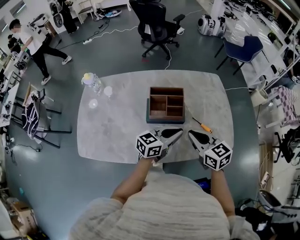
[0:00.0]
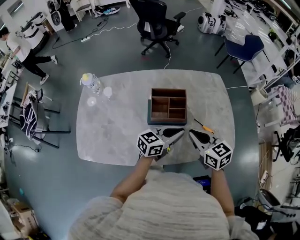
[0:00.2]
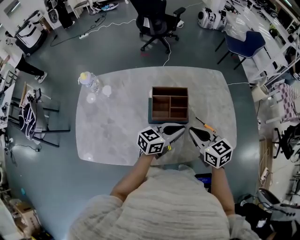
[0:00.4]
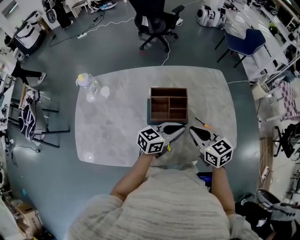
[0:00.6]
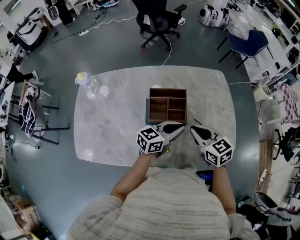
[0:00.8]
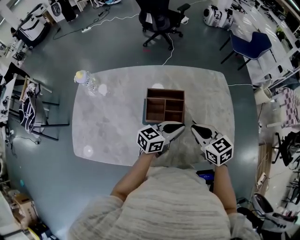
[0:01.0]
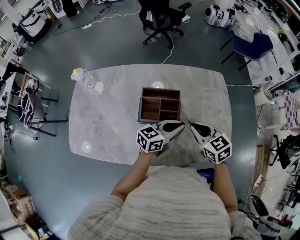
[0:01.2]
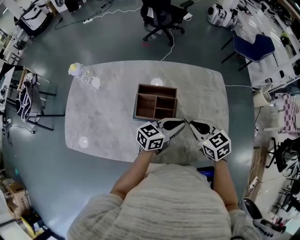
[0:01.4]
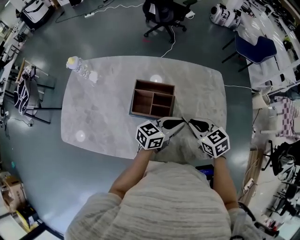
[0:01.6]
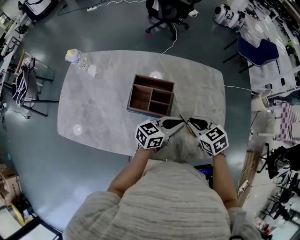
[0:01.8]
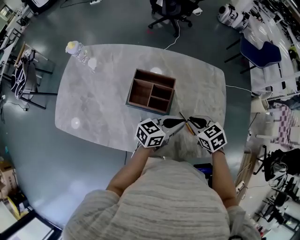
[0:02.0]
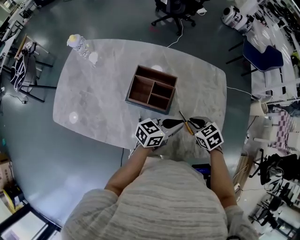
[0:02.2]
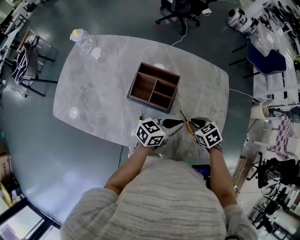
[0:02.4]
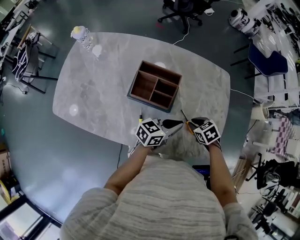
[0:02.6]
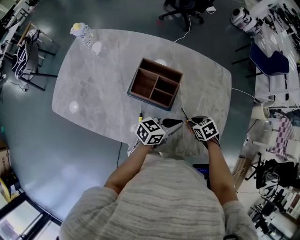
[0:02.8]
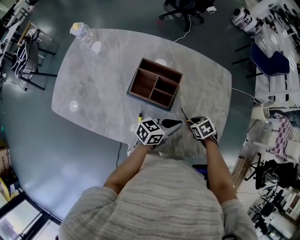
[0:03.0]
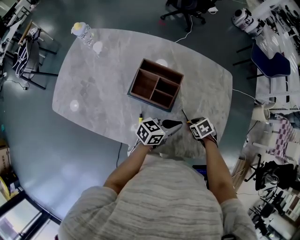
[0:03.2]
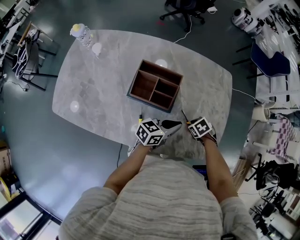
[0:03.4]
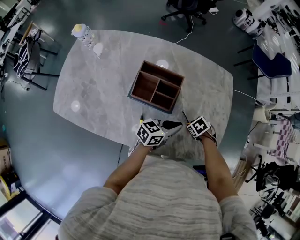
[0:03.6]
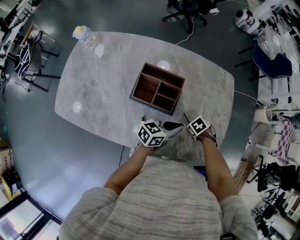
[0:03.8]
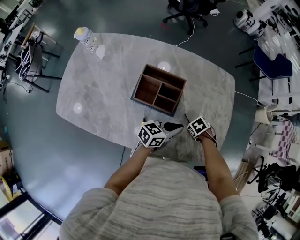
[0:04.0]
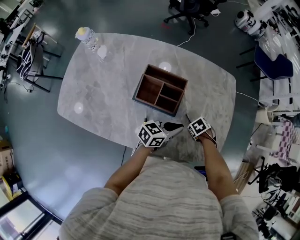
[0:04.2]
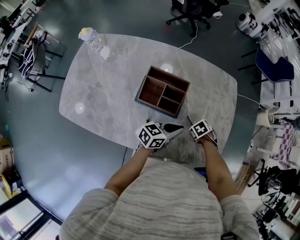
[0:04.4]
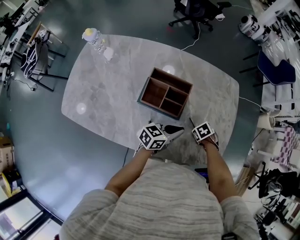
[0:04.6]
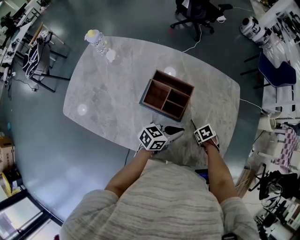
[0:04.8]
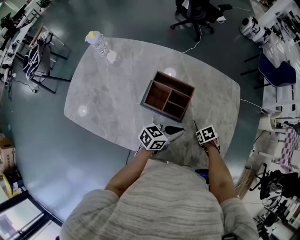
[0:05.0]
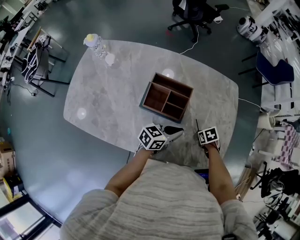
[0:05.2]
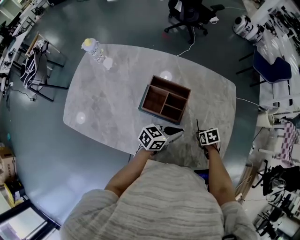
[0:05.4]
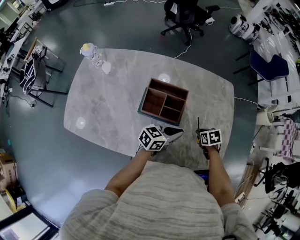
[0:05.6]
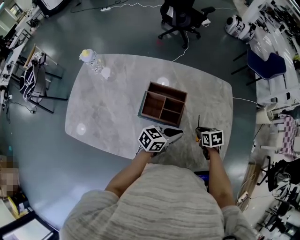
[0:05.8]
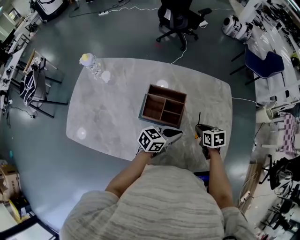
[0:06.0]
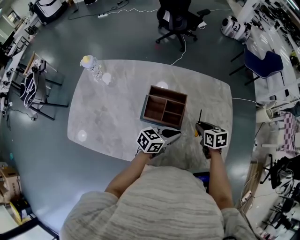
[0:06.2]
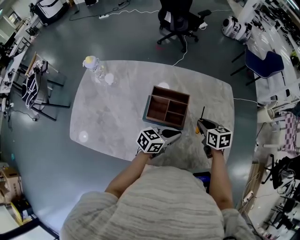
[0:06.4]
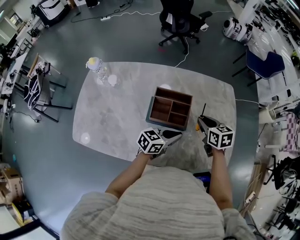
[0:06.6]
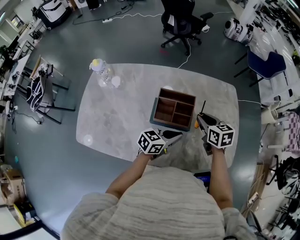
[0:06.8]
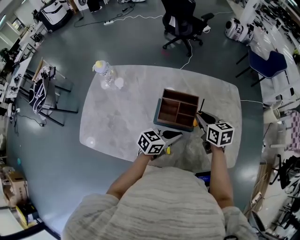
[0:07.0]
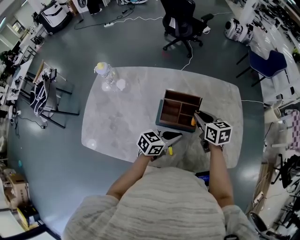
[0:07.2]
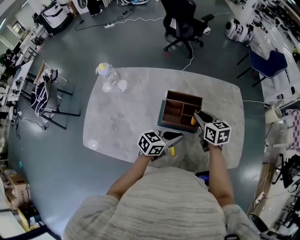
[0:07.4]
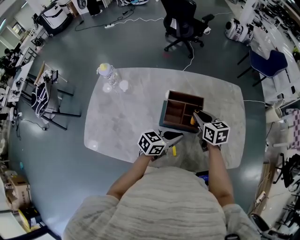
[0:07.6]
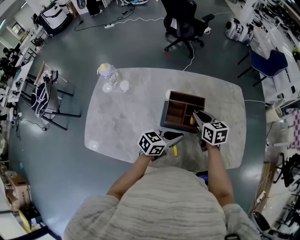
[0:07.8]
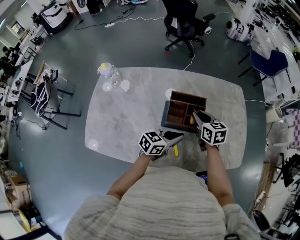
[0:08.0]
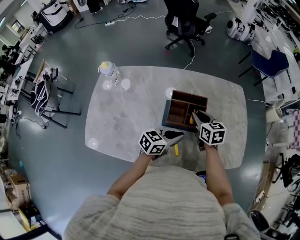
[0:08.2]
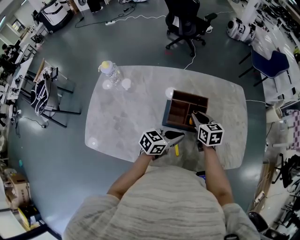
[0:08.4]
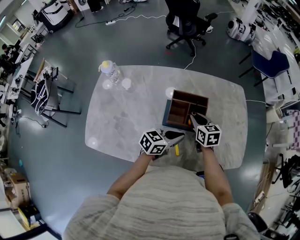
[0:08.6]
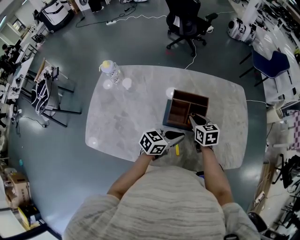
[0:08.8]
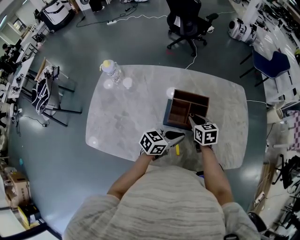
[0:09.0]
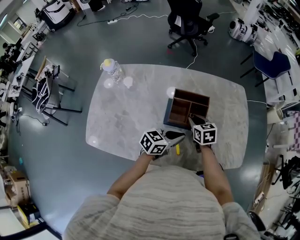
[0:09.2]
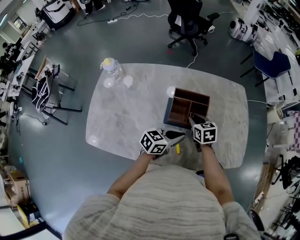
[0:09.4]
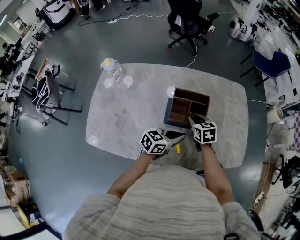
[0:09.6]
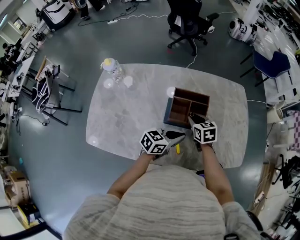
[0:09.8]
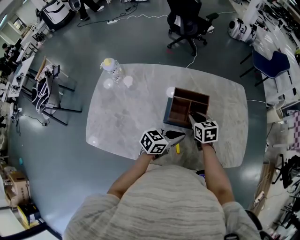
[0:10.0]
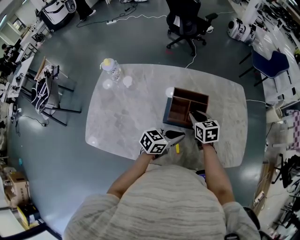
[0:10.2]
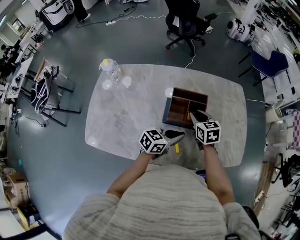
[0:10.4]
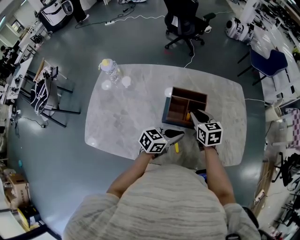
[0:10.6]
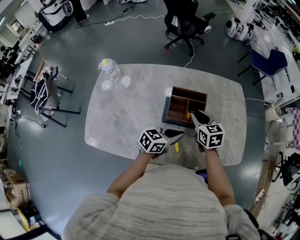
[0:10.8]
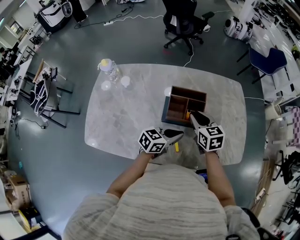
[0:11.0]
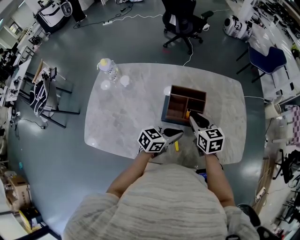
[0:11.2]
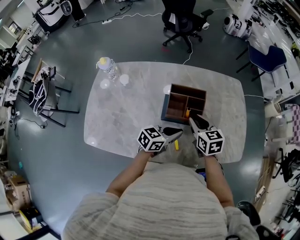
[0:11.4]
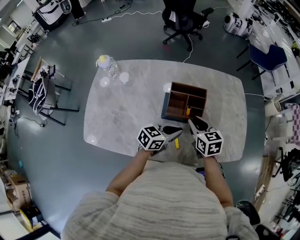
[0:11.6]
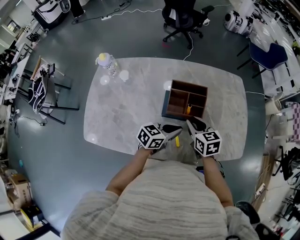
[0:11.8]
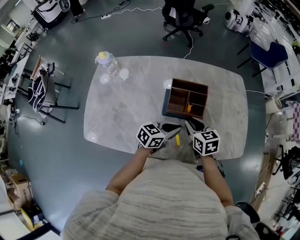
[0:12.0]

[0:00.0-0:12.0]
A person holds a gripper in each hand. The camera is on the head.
0:00.0 to 0:01.6: The left gripper goes some 15 cm forward and to the right, while the right gripper travels forward, to the right and downward by approximately 15 cm, and rotates some 20 degrees.
0:01.6 to 0:03.0: The right gripper travels downward by about 20 cm, and tips its fingers downward by about 30 degrees; the left gripper is displaced downward by about 10 cm.
0:03.0 to 0:04.4: The right gripper travels downward by some 5 cm.
0:04.4 to 0:06.0: The left gripper moves approximately 5 cm; the right gripper goes approximately 15 cm upward, and points its fingers some 30 degrees further upward.
0:06.0 to 0:07.6: The right gripper moves to the left and upward, some 20 cm, and rotates roughly 30 degrees, while the left gripper travels to the left by about 10 cm.
0:07.6 to 0:09.0: The right gripper moves downward, approximately 5 cm.
0:09.0 to 0:10.4: There are only small adjustments of the grippers.
0:10.4 to 0:12.0: The right gripper travels backward by roughly 10 cm.

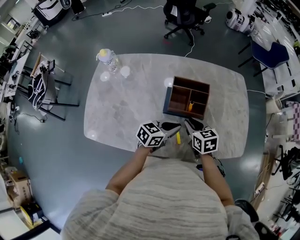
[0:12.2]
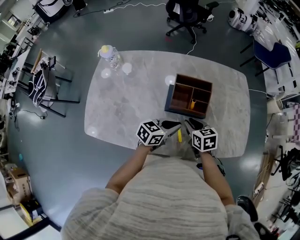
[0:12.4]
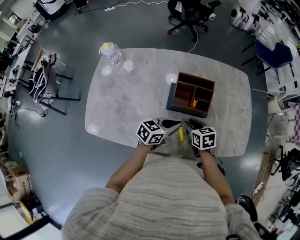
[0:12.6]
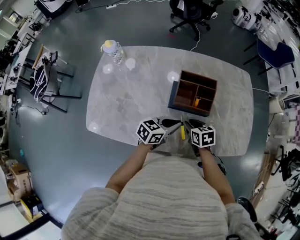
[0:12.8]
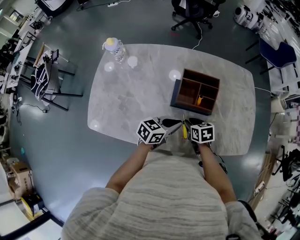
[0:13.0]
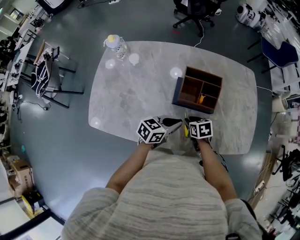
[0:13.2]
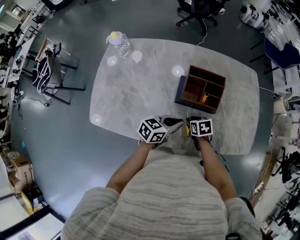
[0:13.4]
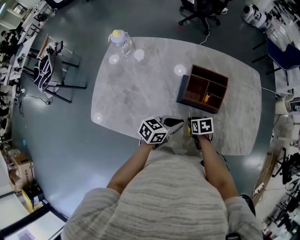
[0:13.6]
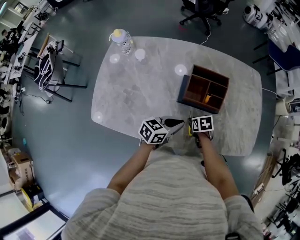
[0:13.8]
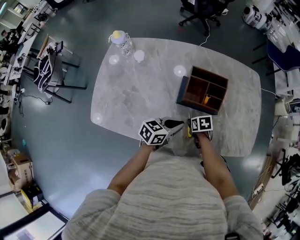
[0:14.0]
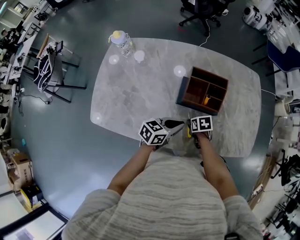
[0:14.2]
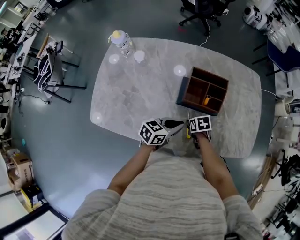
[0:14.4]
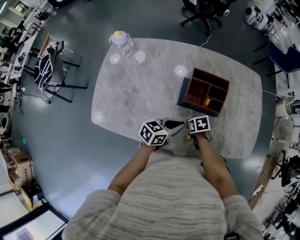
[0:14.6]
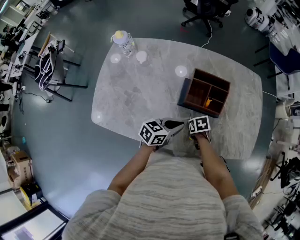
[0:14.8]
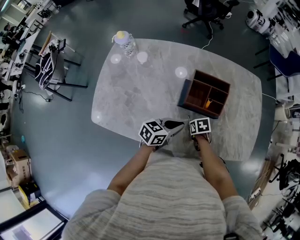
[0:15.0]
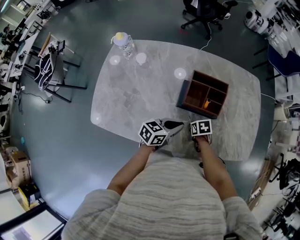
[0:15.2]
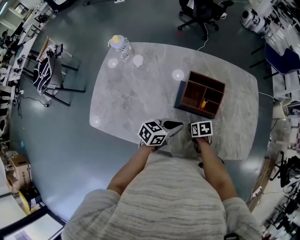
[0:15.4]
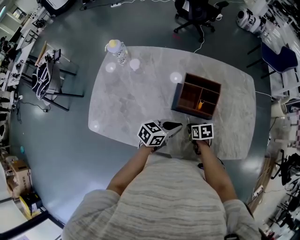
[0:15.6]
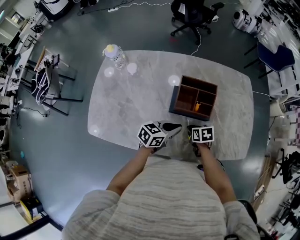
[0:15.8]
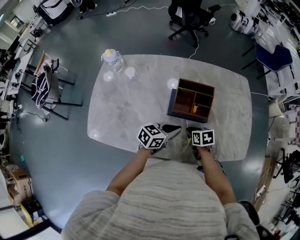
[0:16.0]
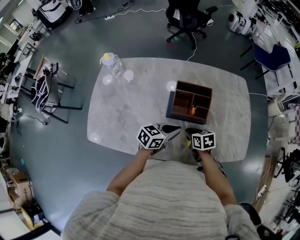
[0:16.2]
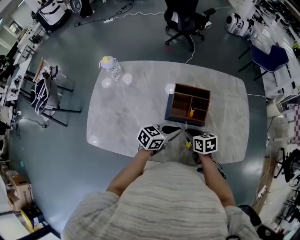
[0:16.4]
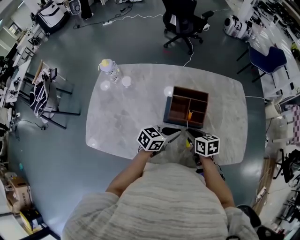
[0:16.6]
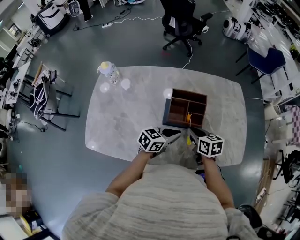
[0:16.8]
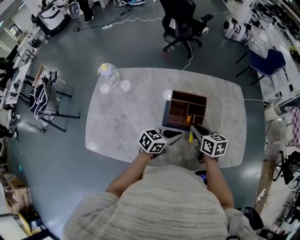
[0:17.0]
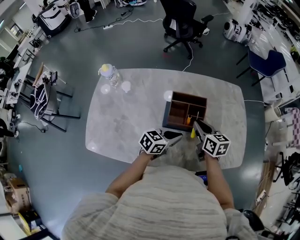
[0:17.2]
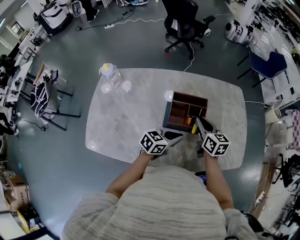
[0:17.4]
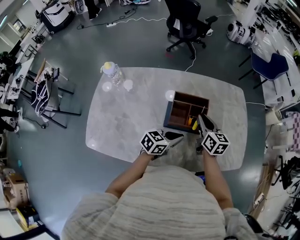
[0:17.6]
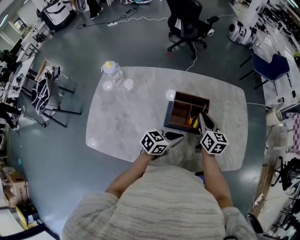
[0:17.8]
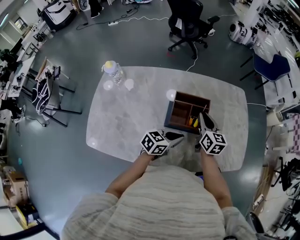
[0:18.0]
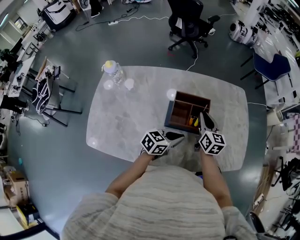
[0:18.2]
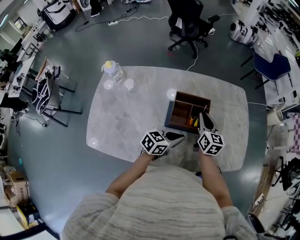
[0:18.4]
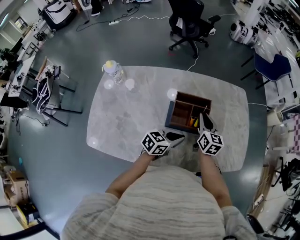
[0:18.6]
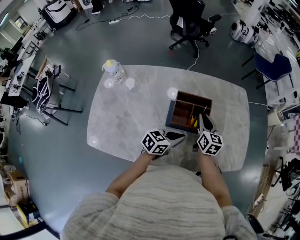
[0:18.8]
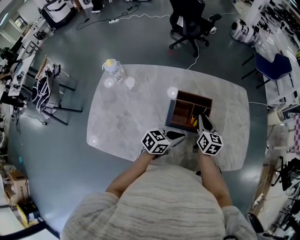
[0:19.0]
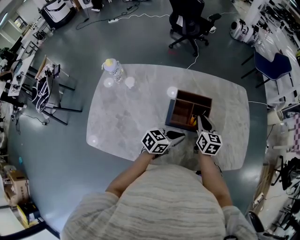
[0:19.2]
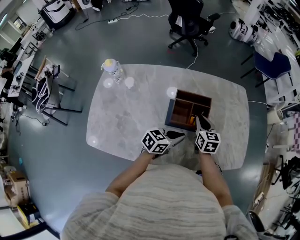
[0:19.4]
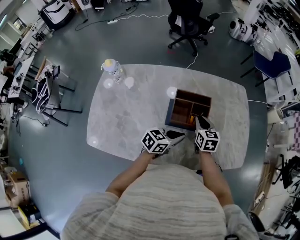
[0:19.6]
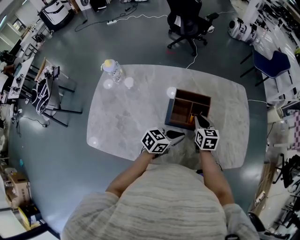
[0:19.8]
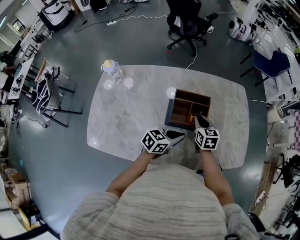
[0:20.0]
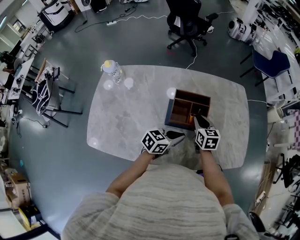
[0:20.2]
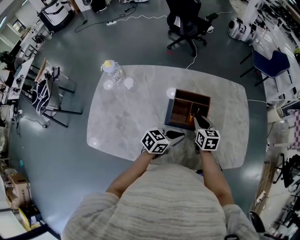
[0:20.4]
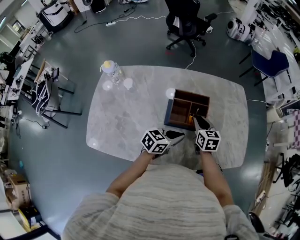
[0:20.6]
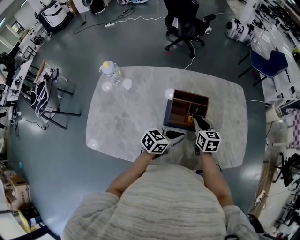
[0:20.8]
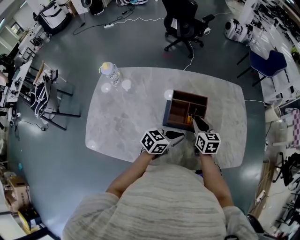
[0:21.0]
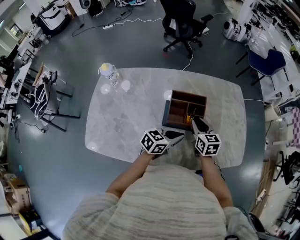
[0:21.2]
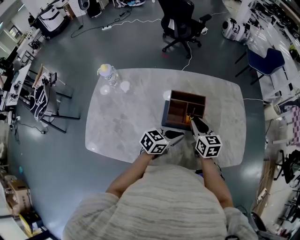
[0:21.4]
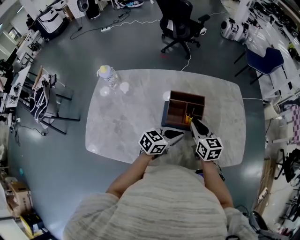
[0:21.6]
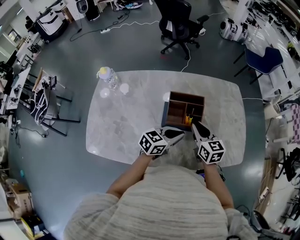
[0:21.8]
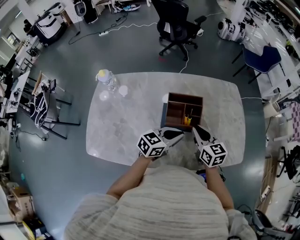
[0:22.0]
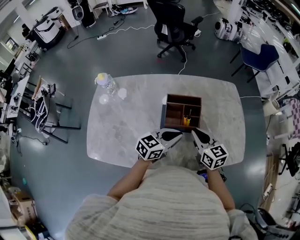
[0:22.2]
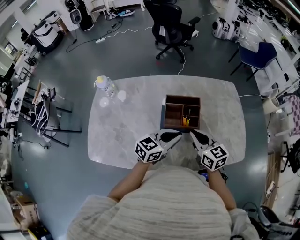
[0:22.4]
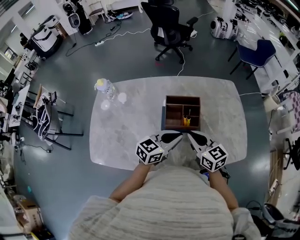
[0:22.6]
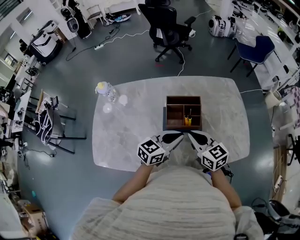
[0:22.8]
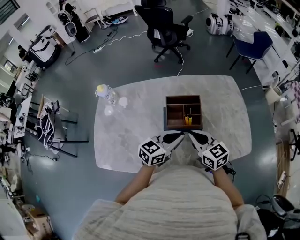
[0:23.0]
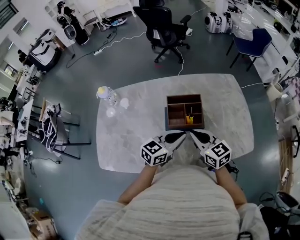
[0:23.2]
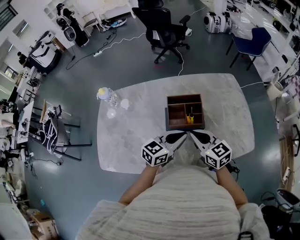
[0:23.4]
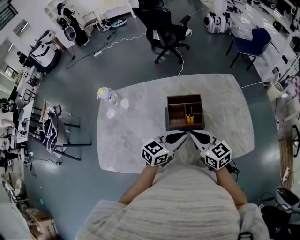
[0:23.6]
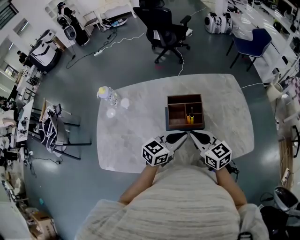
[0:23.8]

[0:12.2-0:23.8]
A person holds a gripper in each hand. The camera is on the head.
0:12.2 to 0:13.6: The left gripper moves about 5 cm; the right gripper is displaced downward by approximately 15 cm, and rotates approximately 30 degrees.
0:13.6 to 0:15.0: The grippers stay close to where they were, moving slightly.
0:15.0 to 0:16.6: The left gripper shifts by some 5 cm. The right gripper moves upward, roughly 15 cm, and rotates some 30 degrees.
0:16.6 to 0:18.0: The right gripper shifts approximately 15 cm forward and upward, and turns by some 30 degrees.
0:18.0 to 0:19.4: The right gripper goes some 5 cm downward.
0:19.4 to 0:21.0: The grippers move only a little.
0:21.0 to 0:22.4: The right gripper is displaced backward and upward by about 10 cm, while the left gripper shifts approximately 5 cm upward.
0:22.4 to 0:23.8: The grippers move only a little.
